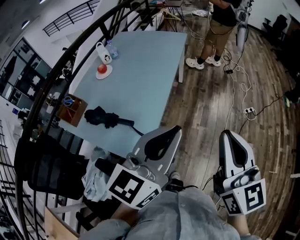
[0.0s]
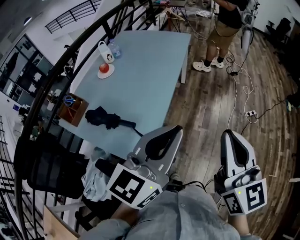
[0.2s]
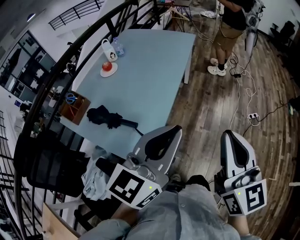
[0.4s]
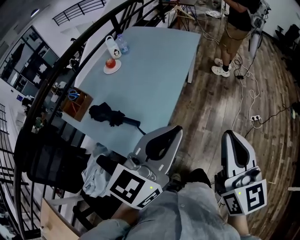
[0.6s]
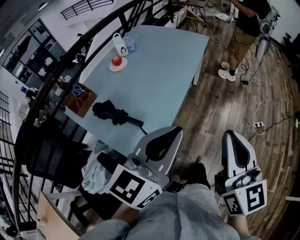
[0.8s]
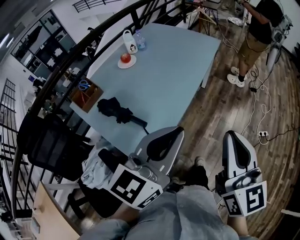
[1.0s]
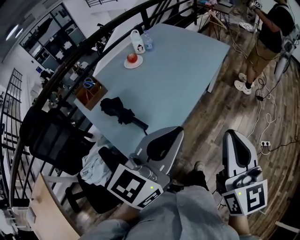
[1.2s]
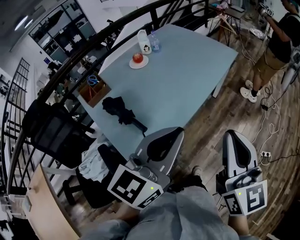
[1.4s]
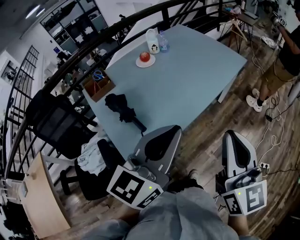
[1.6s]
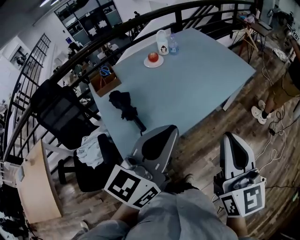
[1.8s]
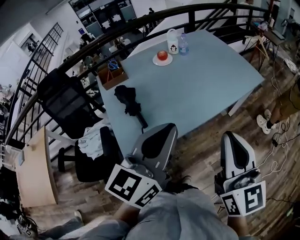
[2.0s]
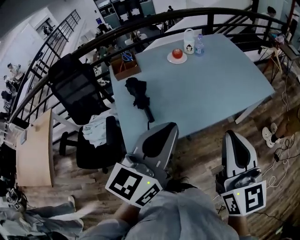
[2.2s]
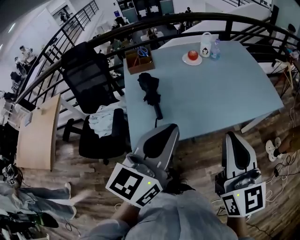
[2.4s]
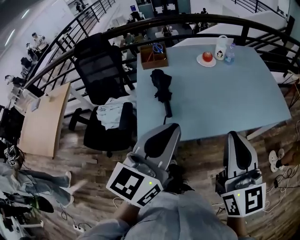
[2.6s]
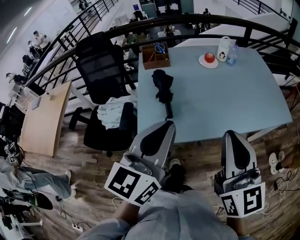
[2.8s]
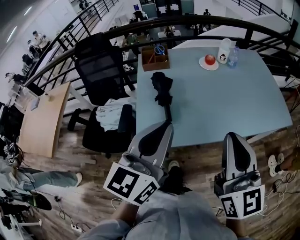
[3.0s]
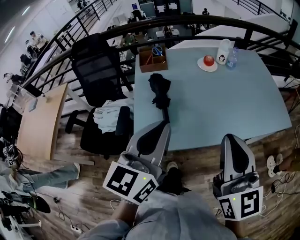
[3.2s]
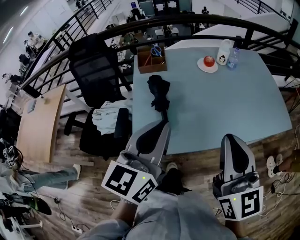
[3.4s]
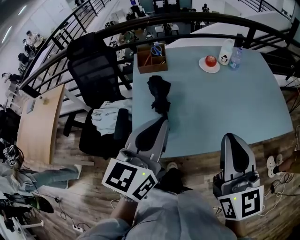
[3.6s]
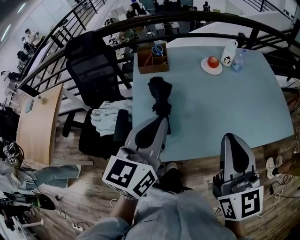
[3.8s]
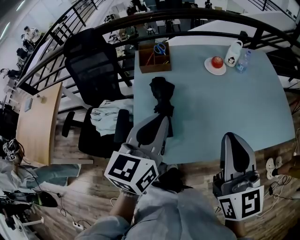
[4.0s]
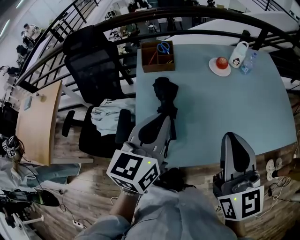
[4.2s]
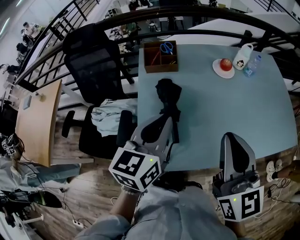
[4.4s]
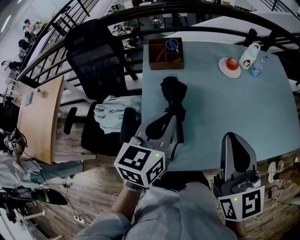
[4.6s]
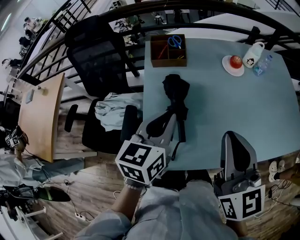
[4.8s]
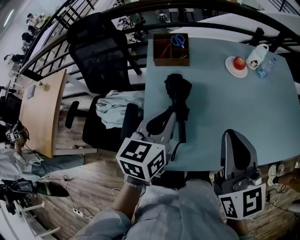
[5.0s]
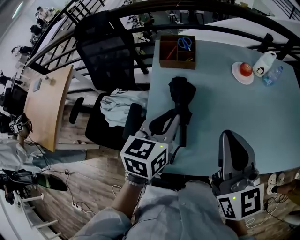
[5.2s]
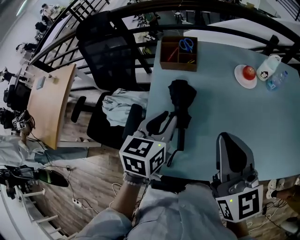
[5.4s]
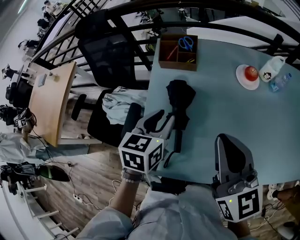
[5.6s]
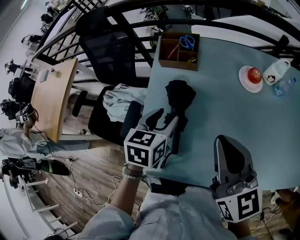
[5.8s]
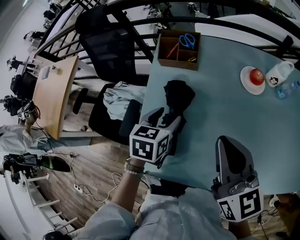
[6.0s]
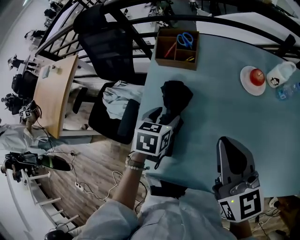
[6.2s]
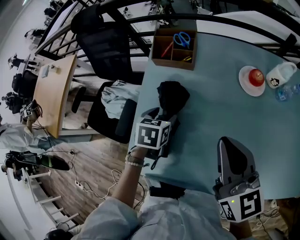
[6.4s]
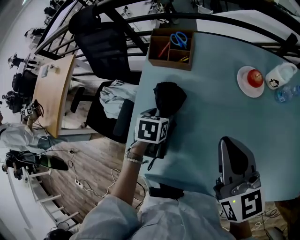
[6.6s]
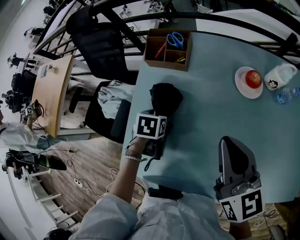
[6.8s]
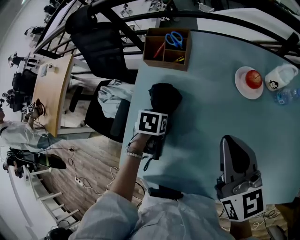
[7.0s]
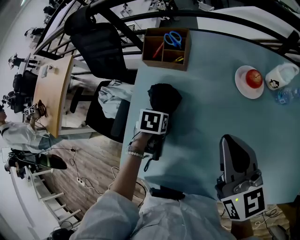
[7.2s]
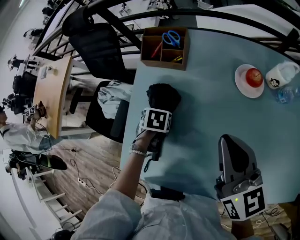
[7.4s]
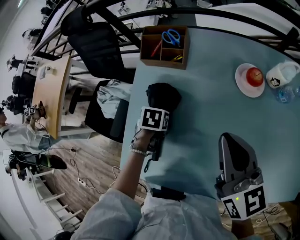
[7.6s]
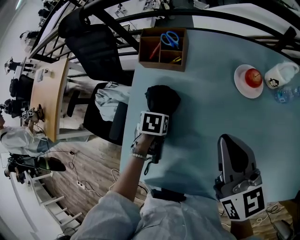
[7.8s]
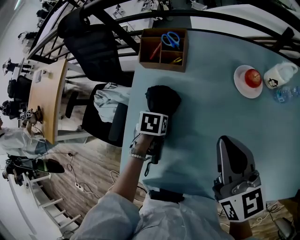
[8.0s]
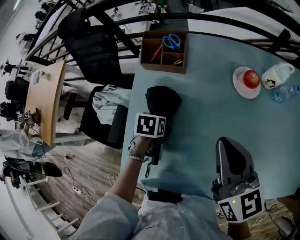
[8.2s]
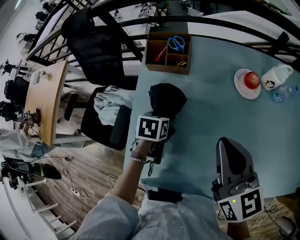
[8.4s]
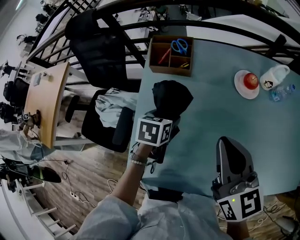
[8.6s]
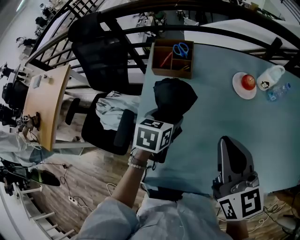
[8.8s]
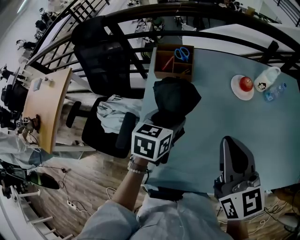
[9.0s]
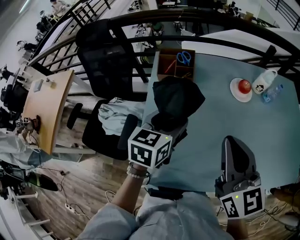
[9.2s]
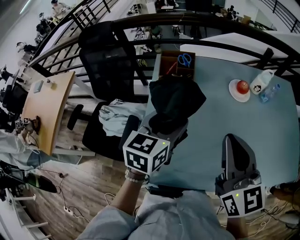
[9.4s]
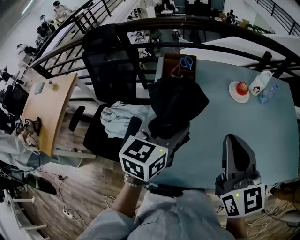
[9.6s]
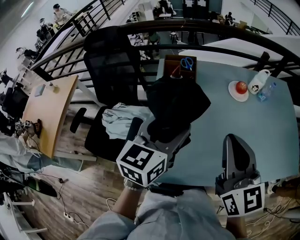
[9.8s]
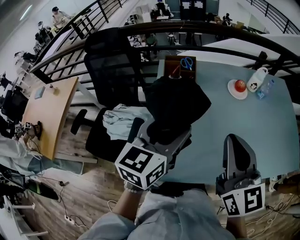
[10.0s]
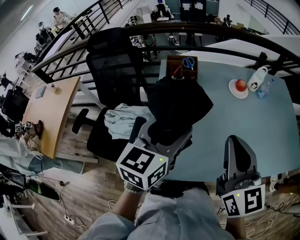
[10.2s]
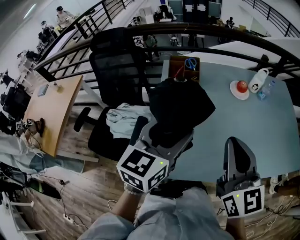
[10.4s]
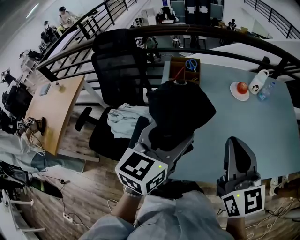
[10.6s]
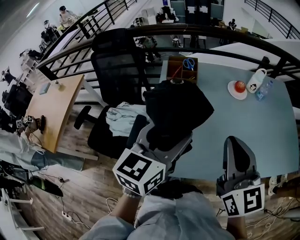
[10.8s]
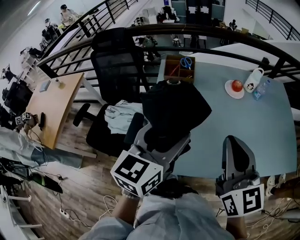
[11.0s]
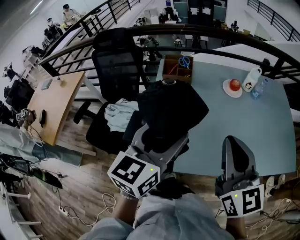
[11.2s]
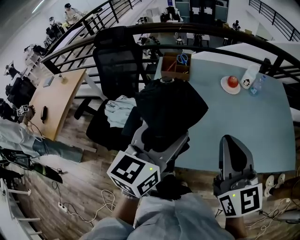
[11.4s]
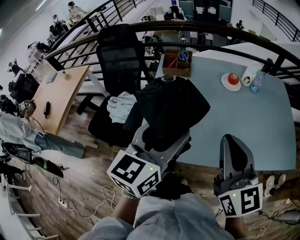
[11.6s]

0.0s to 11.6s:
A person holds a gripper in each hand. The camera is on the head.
0.0s to 1.4s: The two grippers go roughly 15 cm forward. The left gripper swivels approximately 20 degrees. Meanwhile the right gripper swivels some 20 degrees.
1.4s to 2.8s: The right gripper shifts by about 10 cm, and changes its angle by some 40 degrees, while the left gripper changes its angle by about 50 degrees.
2.8s to 4.4s: The left gripper goes some 25 cm forward and downward. Meanwhile the right gripper heads forward, covering about 20 cm.
4.4s to 5.8s: The left gripper shifts roughly 15 cm downward and forward, swivels about 30 degrees, and opens its fingers, while the right gripper heads forward and downward, covering some 15 cm, and swivels approximately 20 degrees.
5.8s to 7.2s: The left gripper heads downward, covering some 15 cm, and tilts its fingers roughly 30 degrees downward, while the right gripper shifts approximately 15 cm to the right, forward and downward.
7.2s to 8.8s: The right gripper moves about 10 cm; the left gripper is displaced upward by roughly 10 cm, and rotates some 30 degrees.
8.8s to 10.2s: The right gripper heads backward, upward and to the left, covering approximately 15 cm, while the left gripper moves upward and backward, about 25 cm, and points its fingers about 30 degrees further upward.
10.2s to 11.6s: The two grippers go some 15 cm backward and to the right.

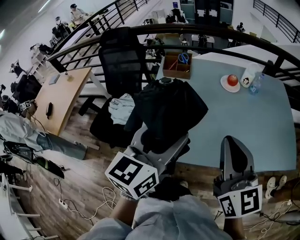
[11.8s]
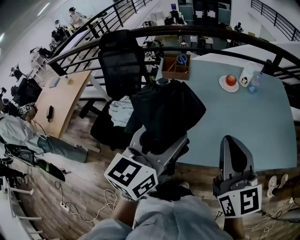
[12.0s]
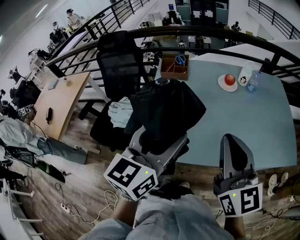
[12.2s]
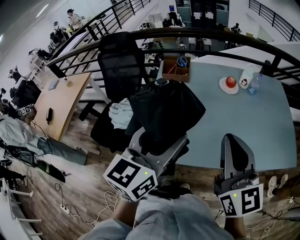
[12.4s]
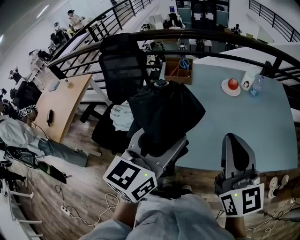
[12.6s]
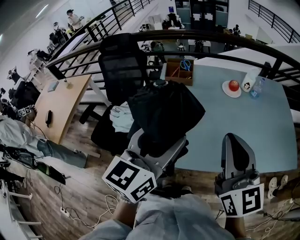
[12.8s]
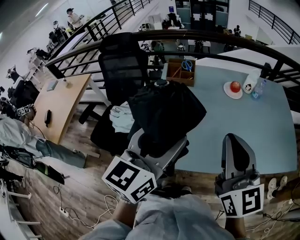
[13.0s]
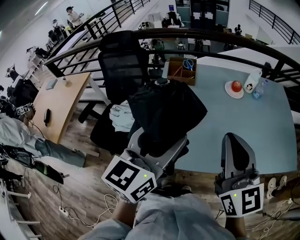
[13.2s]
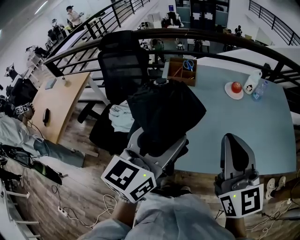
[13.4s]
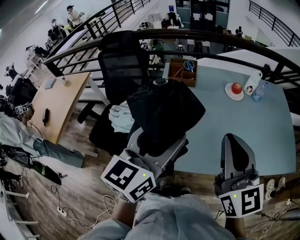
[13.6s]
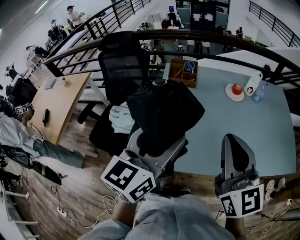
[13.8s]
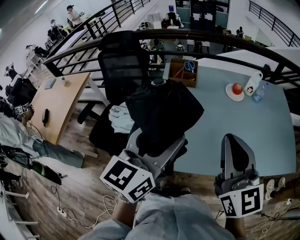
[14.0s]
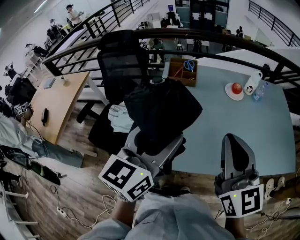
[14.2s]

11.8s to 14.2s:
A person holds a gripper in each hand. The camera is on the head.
11.8s to 13.0s: The right gripper changes place by roughly 5 cm, while the left gripper goes approximately 5 cm to the left.
13.0s to 14.2s: The grippers make only small movements.

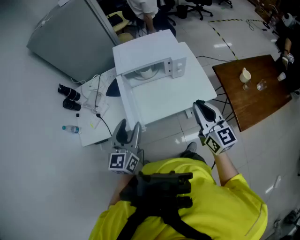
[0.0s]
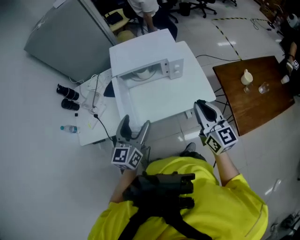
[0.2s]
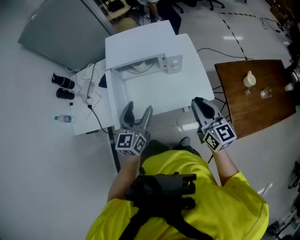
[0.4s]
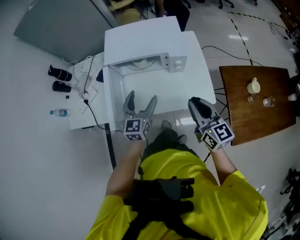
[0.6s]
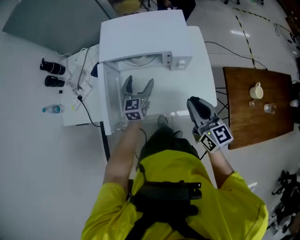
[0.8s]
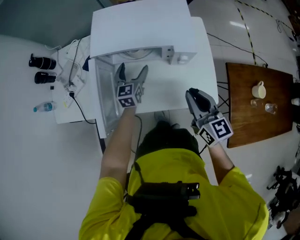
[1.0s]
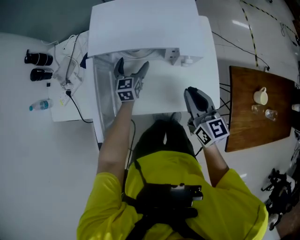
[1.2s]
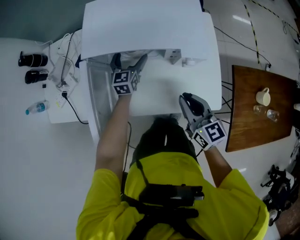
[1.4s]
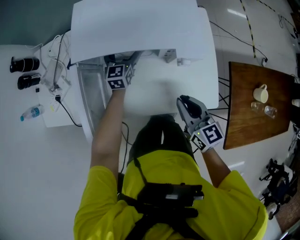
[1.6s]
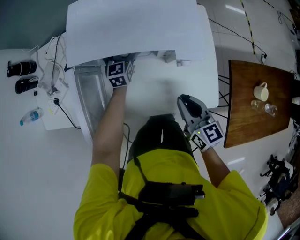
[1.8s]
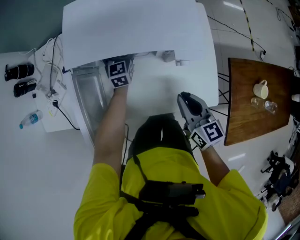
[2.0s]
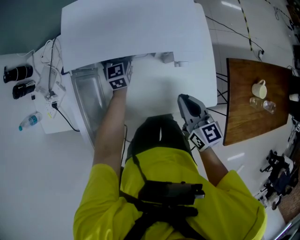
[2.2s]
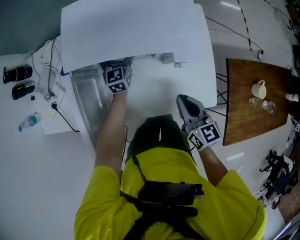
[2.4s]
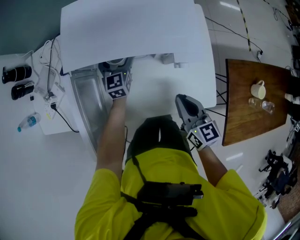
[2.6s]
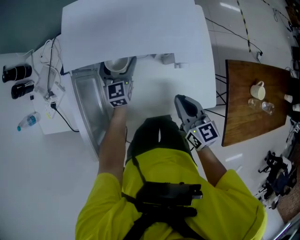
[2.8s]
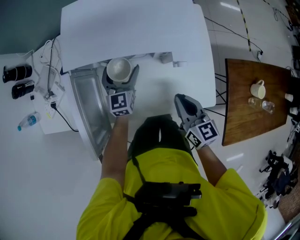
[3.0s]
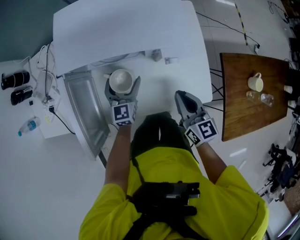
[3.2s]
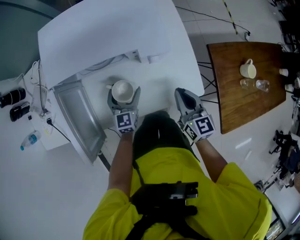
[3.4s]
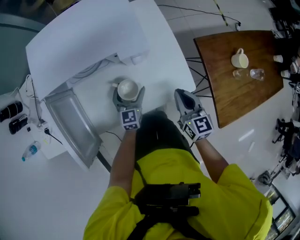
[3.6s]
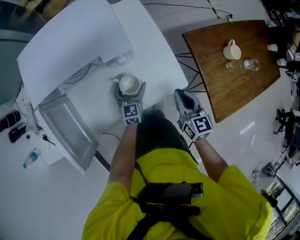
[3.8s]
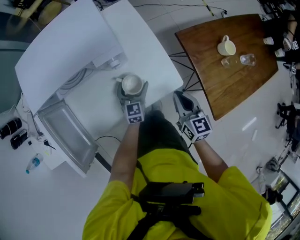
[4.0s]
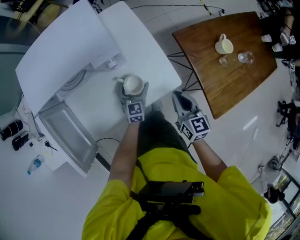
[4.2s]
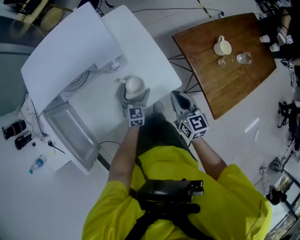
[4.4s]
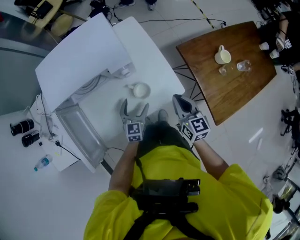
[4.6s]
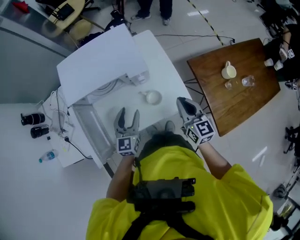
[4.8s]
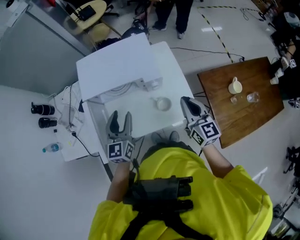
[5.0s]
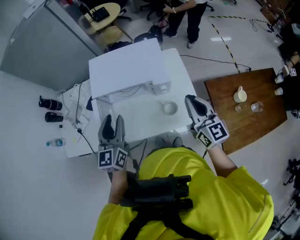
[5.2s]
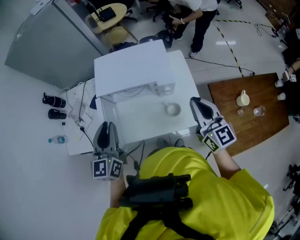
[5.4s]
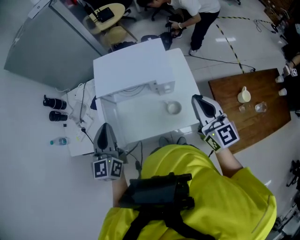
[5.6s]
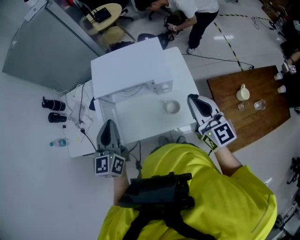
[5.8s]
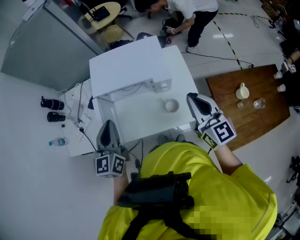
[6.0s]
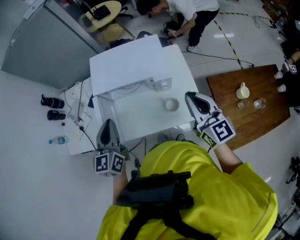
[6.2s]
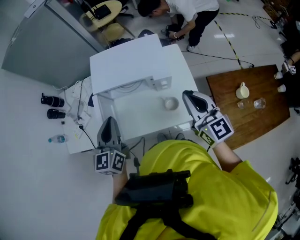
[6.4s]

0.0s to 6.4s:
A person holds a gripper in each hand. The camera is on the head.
0.0s to 1.6s: The right gripper moves downward and forward, some 30 cm, and rotates roughly 30 degrees; the left gripper goes some 50 cm forward and downward, and opens its fingers.
1.6s to 3.2s: The left gripper heads backward, covering approximately 15 cm.
3.2s to 4.8s: The left gripper shifts approximately 20 cm upward, to the right and backward, and closes its fingers. The right gripper goes some 15 cm to the right and upward.
4.8s to 6.4s: The left gripper shifts about 25 cm upward and to the left, swivels approximately 20 degrees, and closes, while the right gripper travels upward by roughly 15 cm, and turns by about 20 degrees.

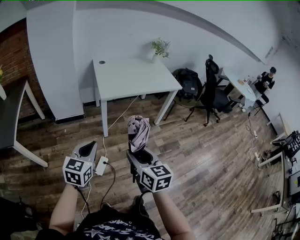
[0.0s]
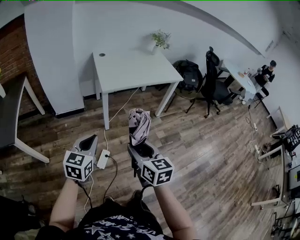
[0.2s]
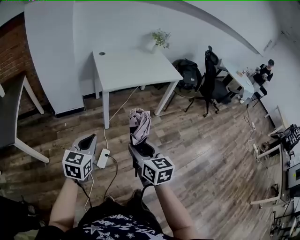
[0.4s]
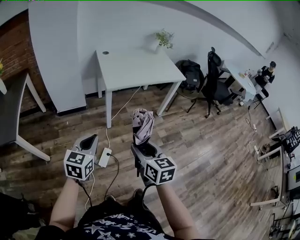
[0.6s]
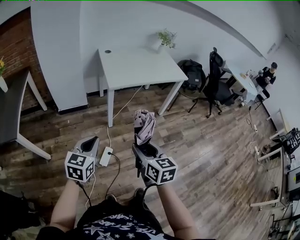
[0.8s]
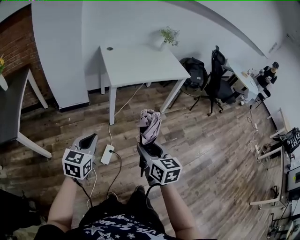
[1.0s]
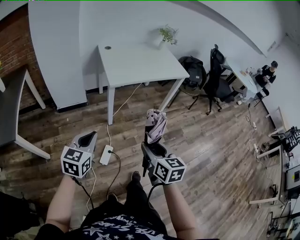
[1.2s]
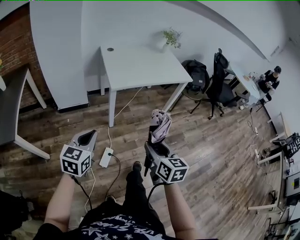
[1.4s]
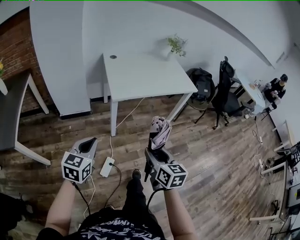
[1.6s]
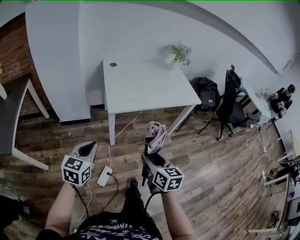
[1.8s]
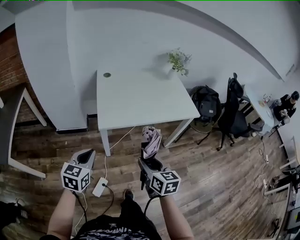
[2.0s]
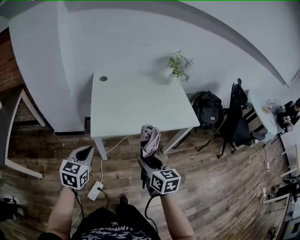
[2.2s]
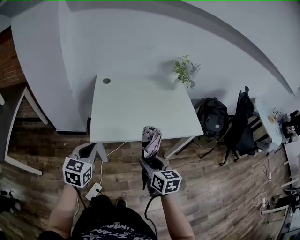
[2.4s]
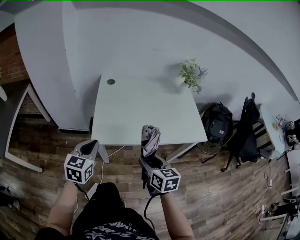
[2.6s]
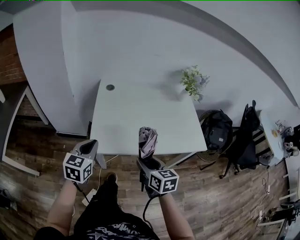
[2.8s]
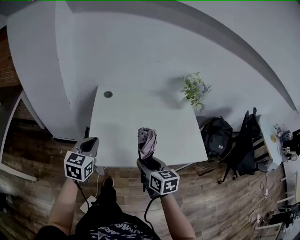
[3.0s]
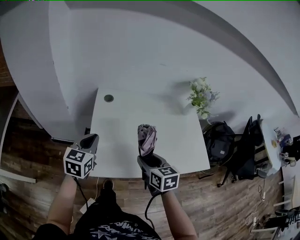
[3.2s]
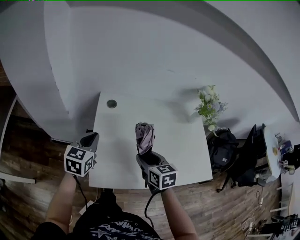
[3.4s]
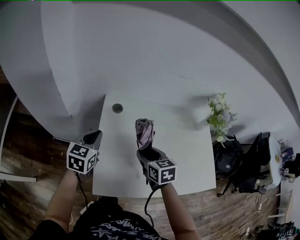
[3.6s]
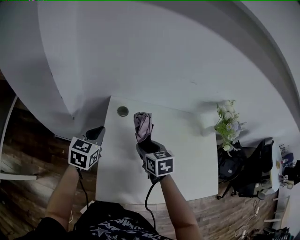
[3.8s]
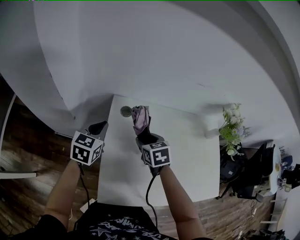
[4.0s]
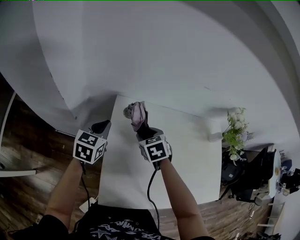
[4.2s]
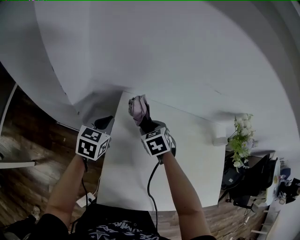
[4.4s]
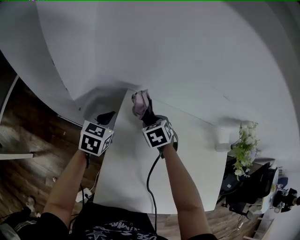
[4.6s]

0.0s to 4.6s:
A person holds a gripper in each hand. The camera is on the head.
0.0s to 1.6s: The right gripper goes some 15 cm forward and downward, while the left gripper travels forward and to the left by approximately 10 cm.
1.6s to 3.0s: The two grippers travel together, forward, about 40 cm. The right gripper turns by some 20 degrees.
3.0s to 4.6s: Both grippers move forward, about 40 cm. The right gripper tips its fingers downward by approximately 30 degrees.
